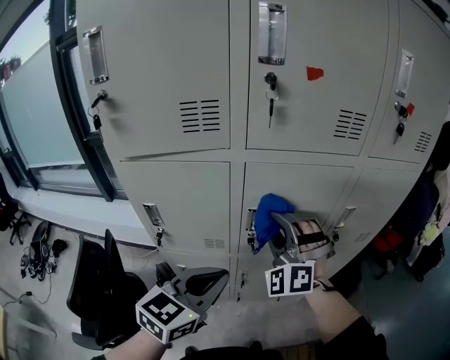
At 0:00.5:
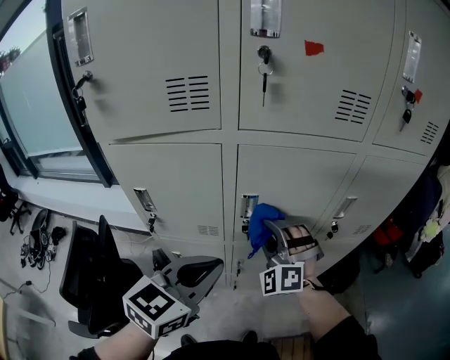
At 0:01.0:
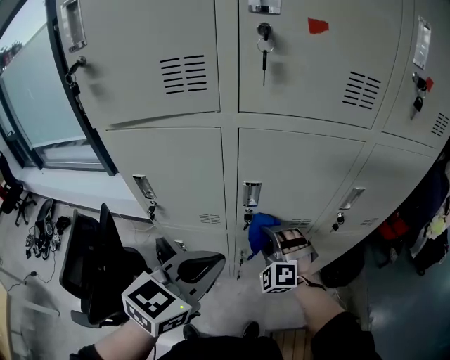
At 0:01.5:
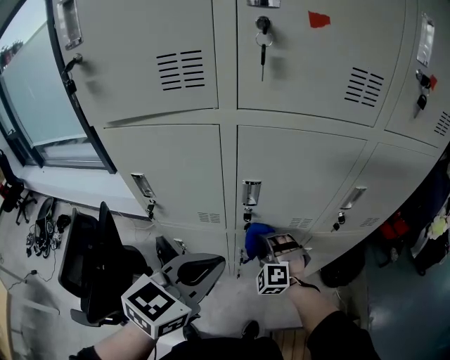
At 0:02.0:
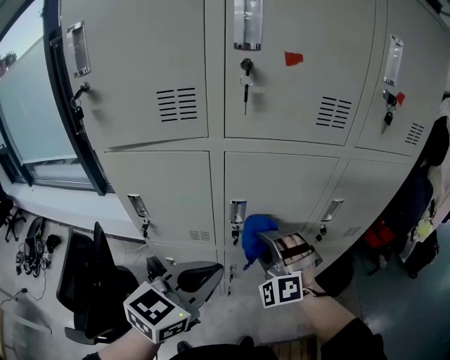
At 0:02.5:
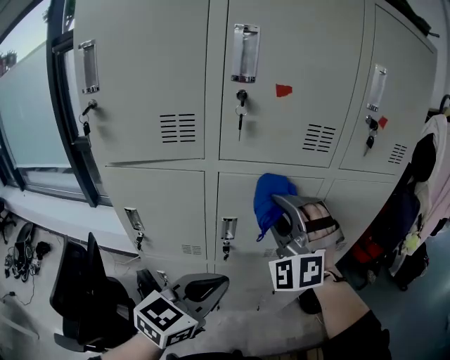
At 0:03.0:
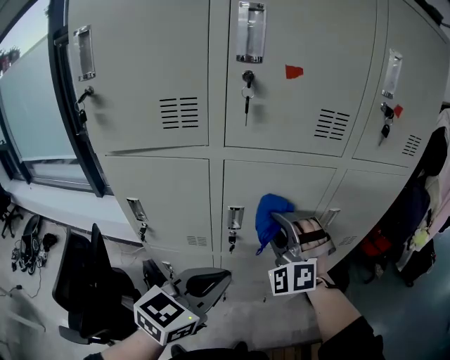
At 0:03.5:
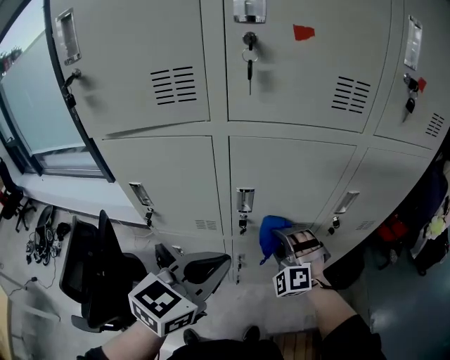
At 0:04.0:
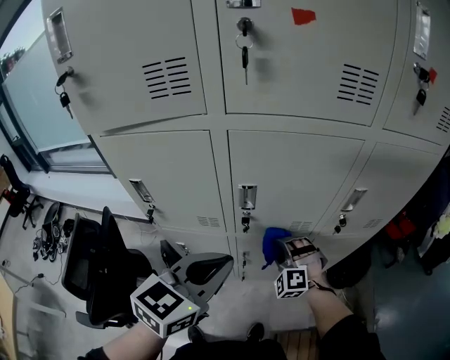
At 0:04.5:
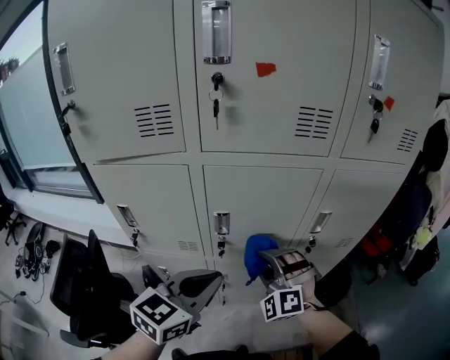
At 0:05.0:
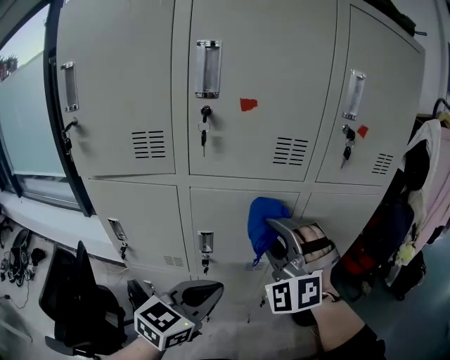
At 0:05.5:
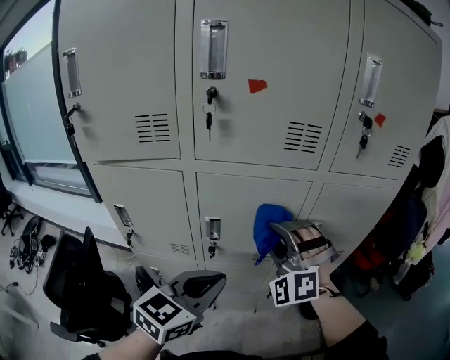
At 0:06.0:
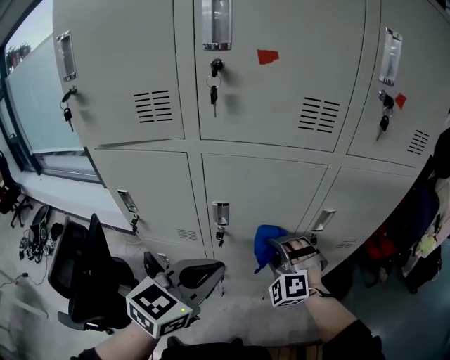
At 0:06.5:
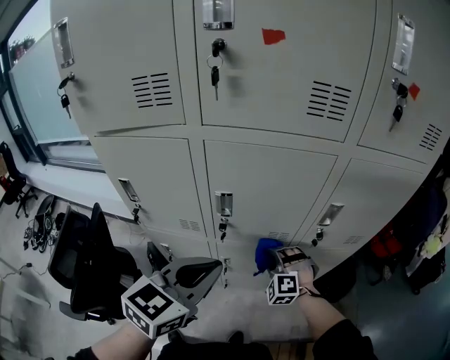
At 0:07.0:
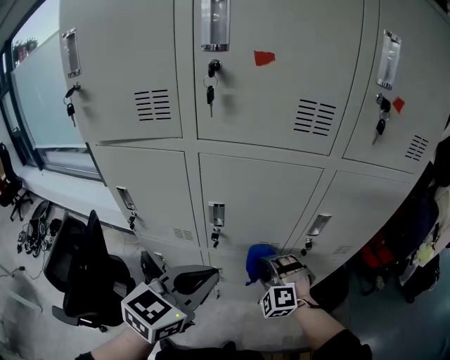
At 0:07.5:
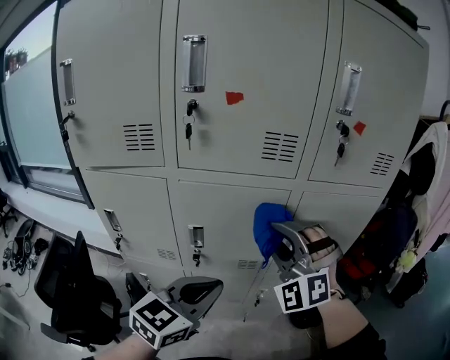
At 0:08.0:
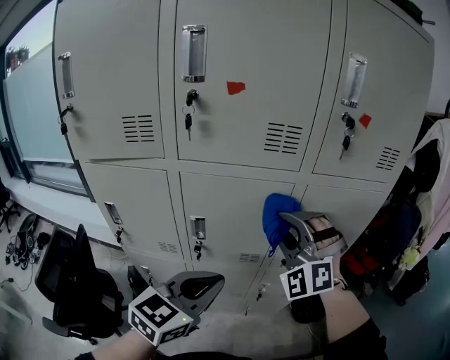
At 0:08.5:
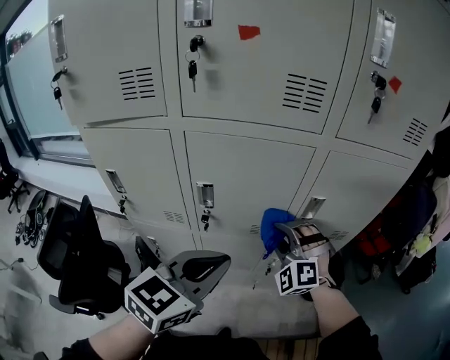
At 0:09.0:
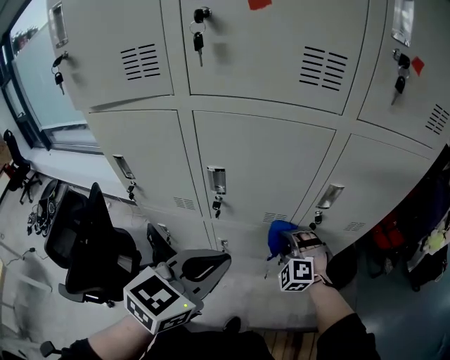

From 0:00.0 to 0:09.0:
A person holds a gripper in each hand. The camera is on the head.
From 0:00.0 to 0:02.0: The right gripper goes downward and returns, roughly 25 cm each way.
From 0:02.0 to 0:04.5: The right gripper swings up and down, approximately 35 cm each way, with 2 reversals.
From 0:04.5 to 0:07.0: The right gripper moves up and down over approximately 35 cm, changing direction 2 times.
From 0:07.0 to 0:09.0: The right gripper shifts about 5 cm to the right, and goes upward and returns, approximately 30 cm each way.

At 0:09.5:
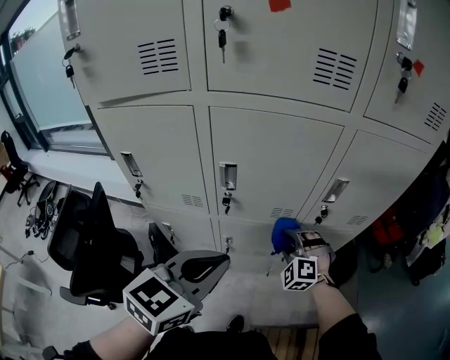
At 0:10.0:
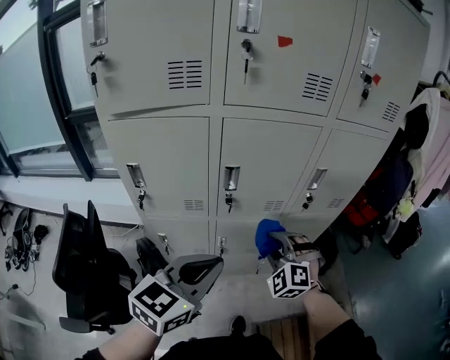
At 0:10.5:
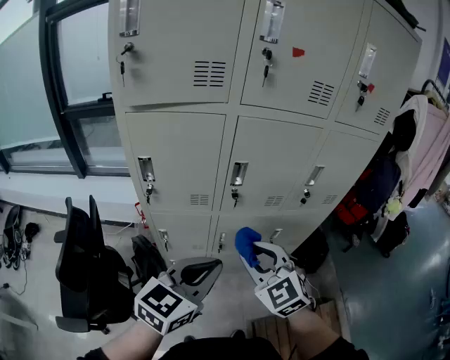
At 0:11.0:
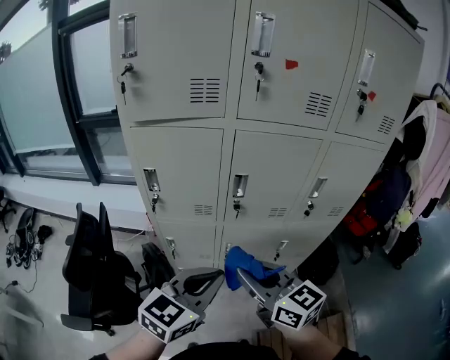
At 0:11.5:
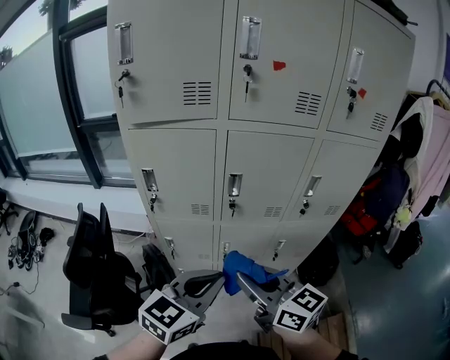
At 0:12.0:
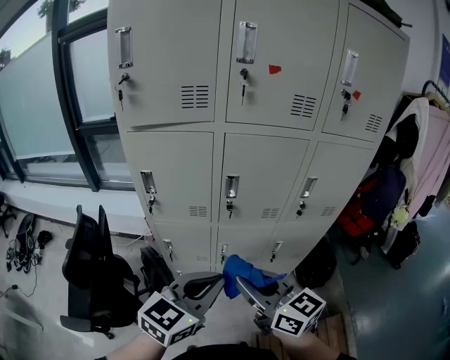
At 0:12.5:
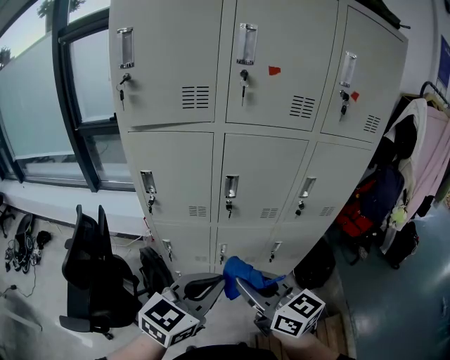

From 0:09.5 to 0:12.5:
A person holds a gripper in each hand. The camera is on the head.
From 0:09.5 to 0:11.0: The left gripper is displaced backward and to the left by some 15 cm. Meanwhile the right gripper goes approximately 35 cm backward, upward and to the left, and twists approximately 70 degrees clockwise, seen from behind.
From 0:11.0 to 0:12.5: There are only small adjustments of the grippers.

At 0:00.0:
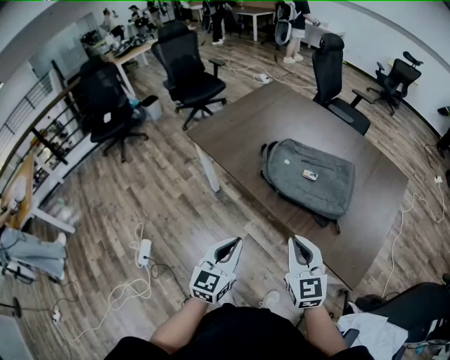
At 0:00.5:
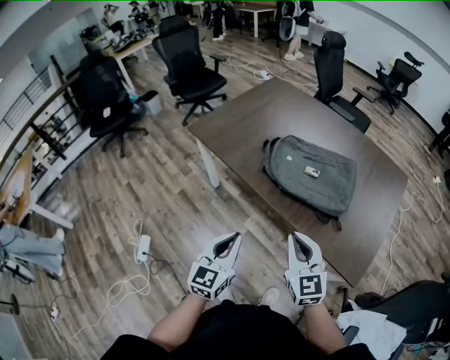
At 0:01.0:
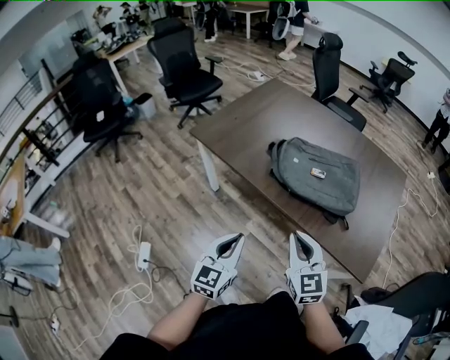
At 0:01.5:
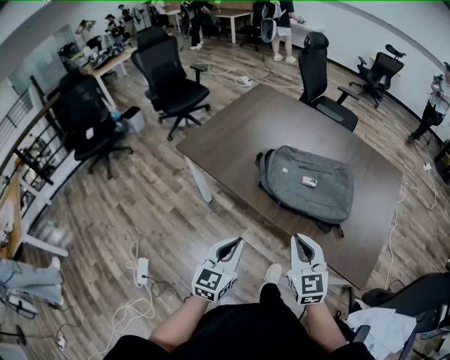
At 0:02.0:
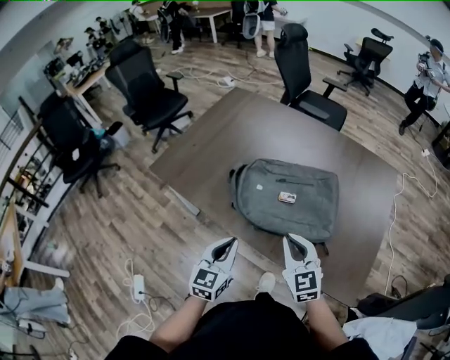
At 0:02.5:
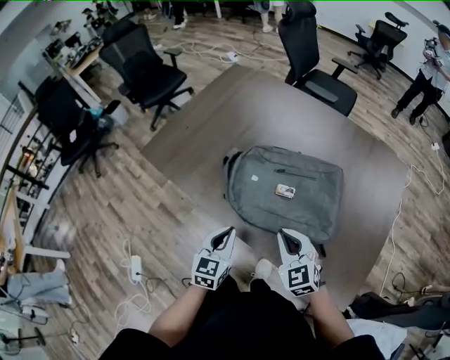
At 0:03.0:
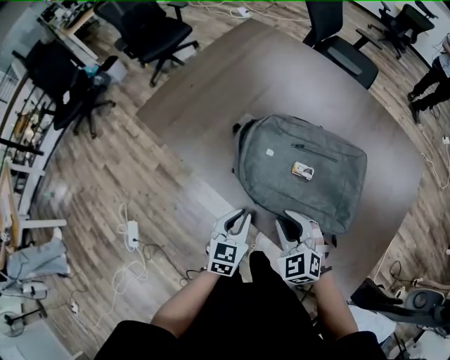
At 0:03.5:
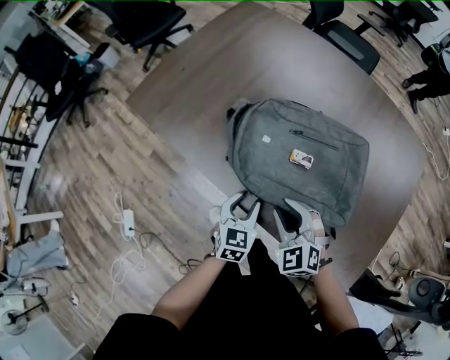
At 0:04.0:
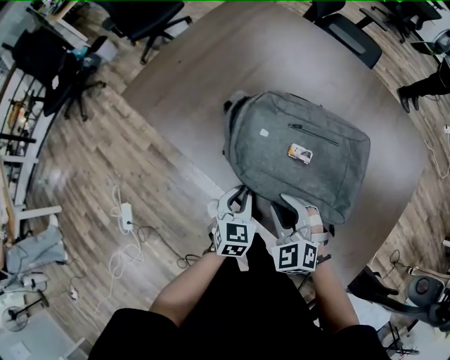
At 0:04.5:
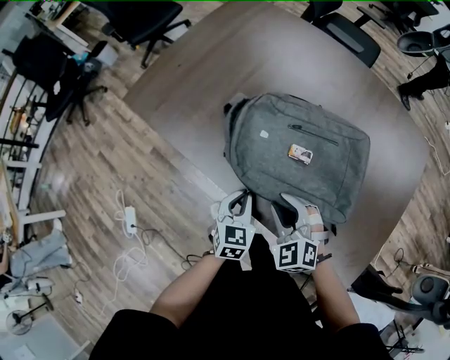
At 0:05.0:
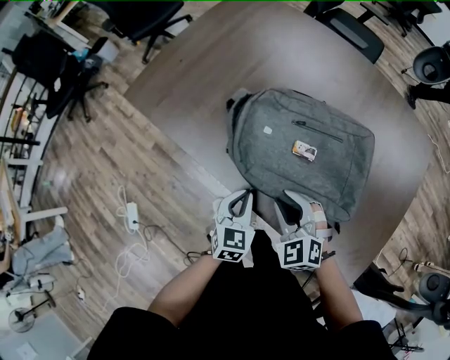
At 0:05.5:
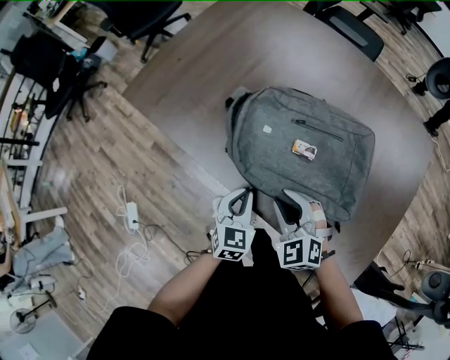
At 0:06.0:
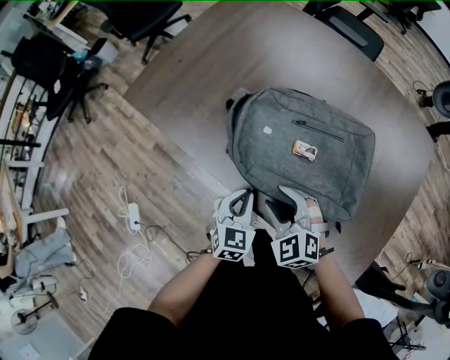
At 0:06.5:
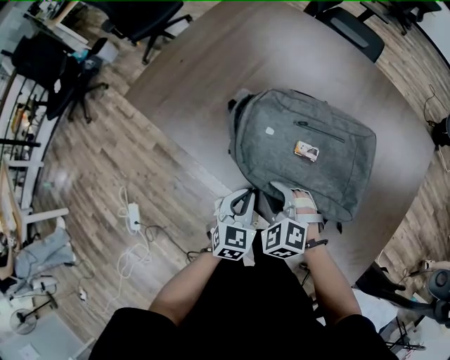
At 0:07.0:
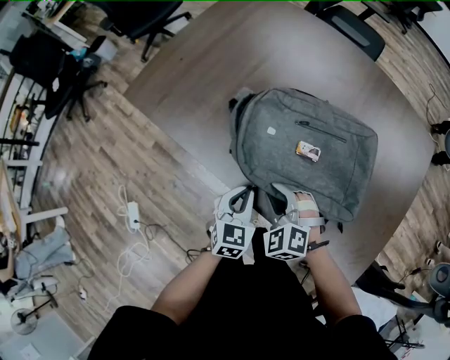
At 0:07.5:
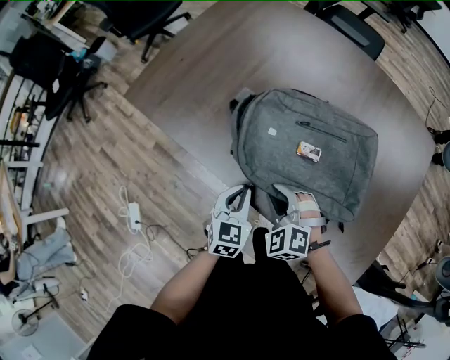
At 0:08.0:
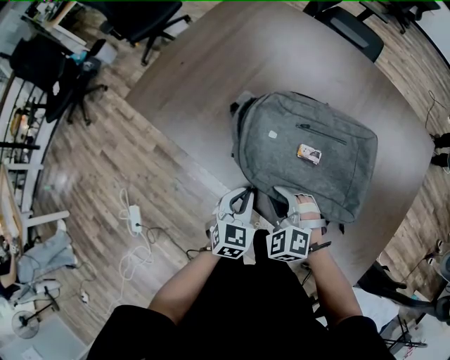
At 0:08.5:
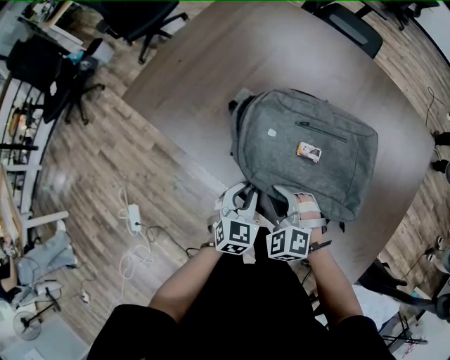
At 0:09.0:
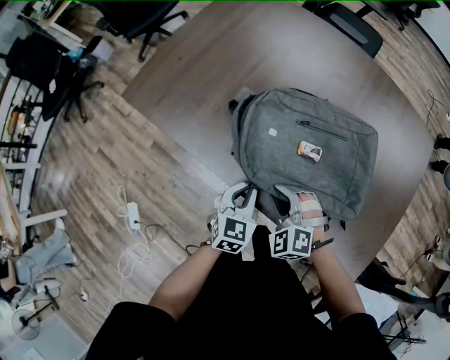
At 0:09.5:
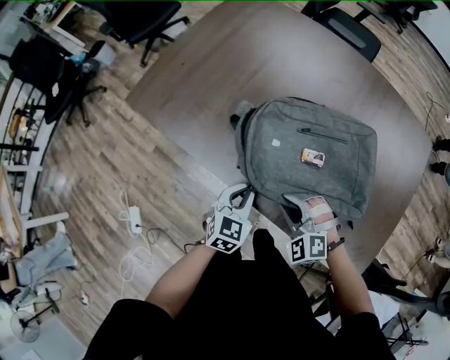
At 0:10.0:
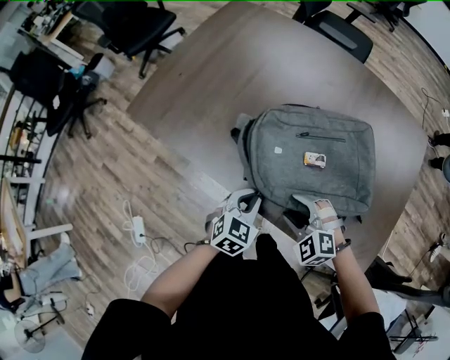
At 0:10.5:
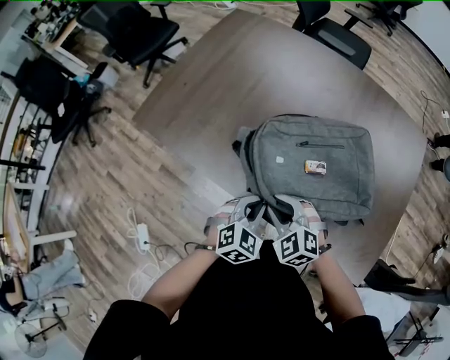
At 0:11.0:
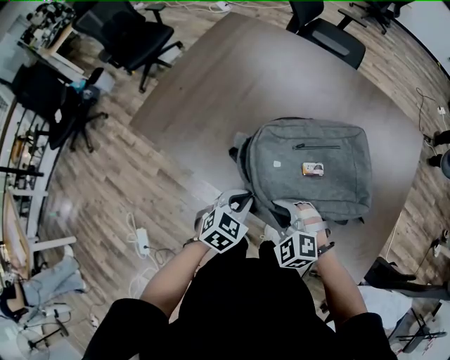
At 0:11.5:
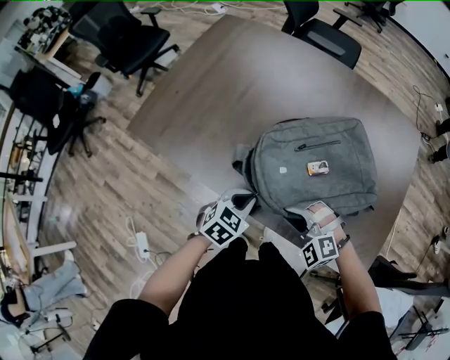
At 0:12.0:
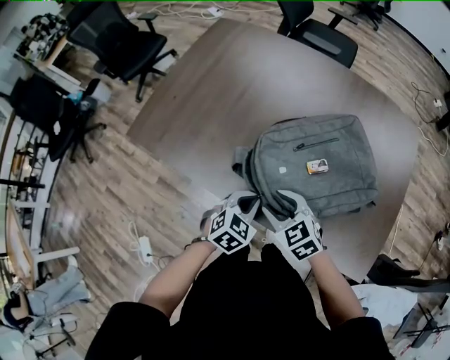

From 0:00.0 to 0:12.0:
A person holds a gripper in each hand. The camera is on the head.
From 0:00.0 to 0:02.0: The two grippers go about 15 cm forward.
From 0:02.0 to 0:04.0: The right gripper heads downward, covering some 10 cm, turns by roughly 40 degrees, and opens its fingers, while the left gripper goes about 15 cm downward and forward, rotates roughly 30 degrees, and opens and closes again.
From 0:04.0 to 0:06.0: The grippers stay close to where they were, moving slightly.
From 0:06.0 to 0:08.0: The right gripper closes its fingers.
From 0:08.0 to 0:10.0: The right gripper changes place by about 5 cm, and opens.
From 0:10.0 to 0:12.0: The right gripper moves left and right over some 5 cm, changing direction 2 times, turns by some 40 degrees, and closes, then opens again.

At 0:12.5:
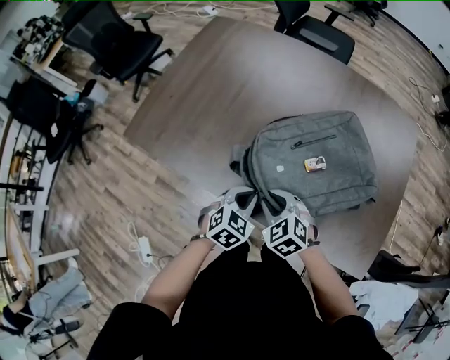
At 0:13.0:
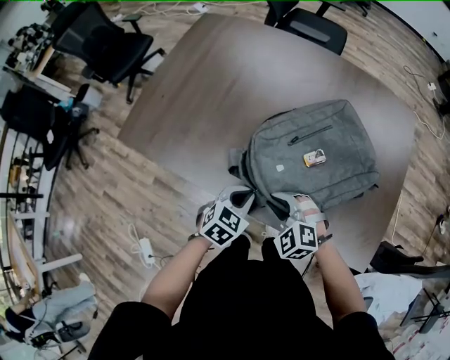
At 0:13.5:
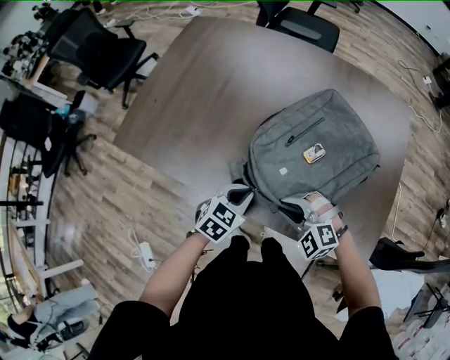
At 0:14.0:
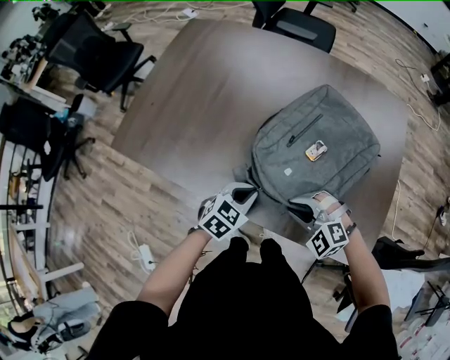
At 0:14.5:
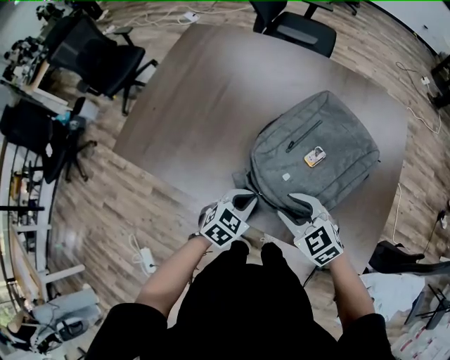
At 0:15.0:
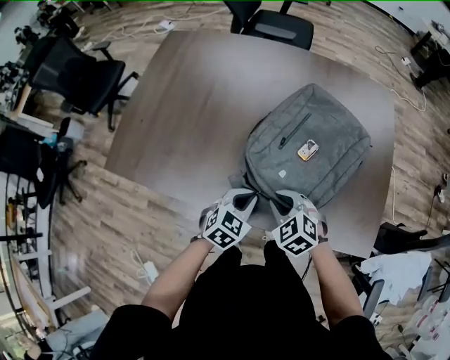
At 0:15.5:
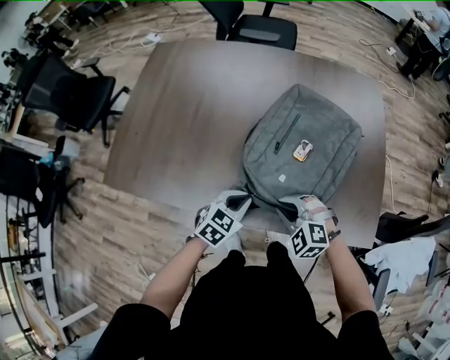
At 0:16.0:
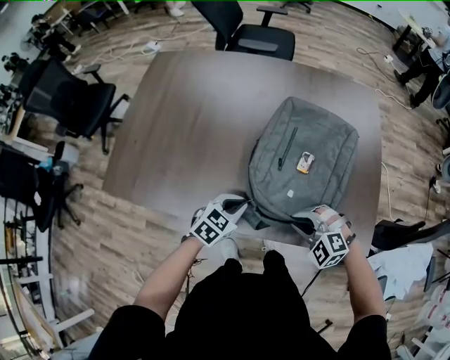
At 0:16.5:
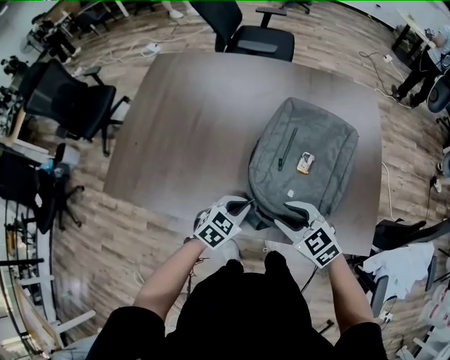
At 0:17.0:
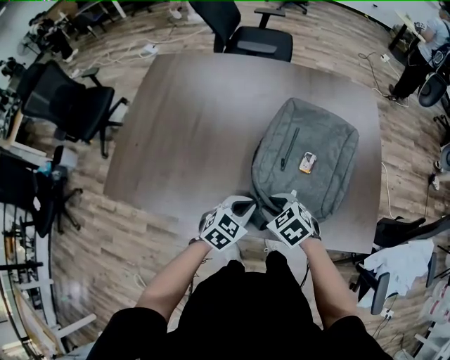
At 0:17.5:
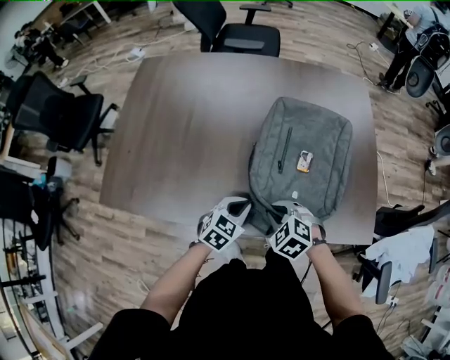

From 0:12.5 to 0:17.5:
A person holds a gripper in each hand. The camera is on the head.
From 0:12.5 to 0:15.0: The right gripper is displaced to the right by roughly 5 cm.
From 0:15.0 to 0:17.5: The right gripper goes to the right and returns, roughly 10 cm each way, and opens, then closes again.
